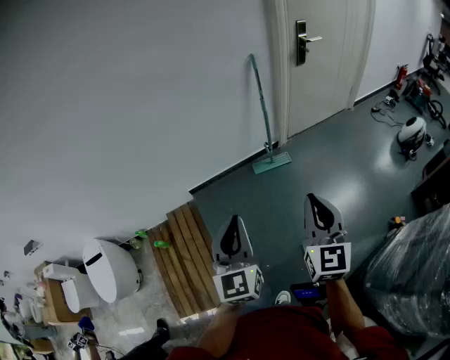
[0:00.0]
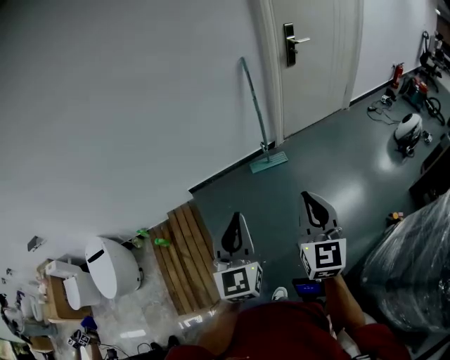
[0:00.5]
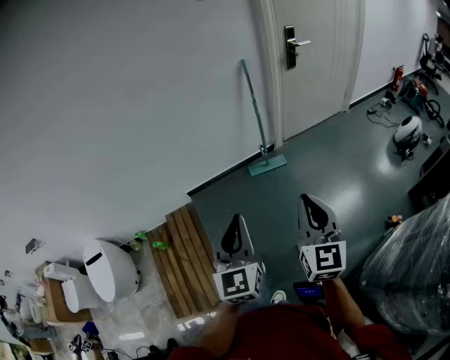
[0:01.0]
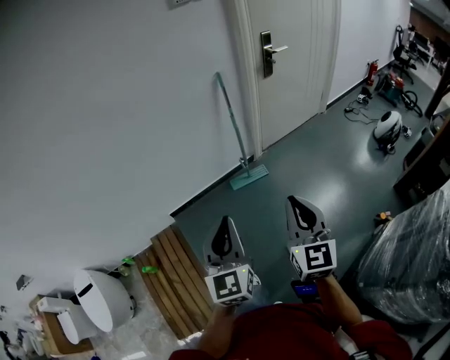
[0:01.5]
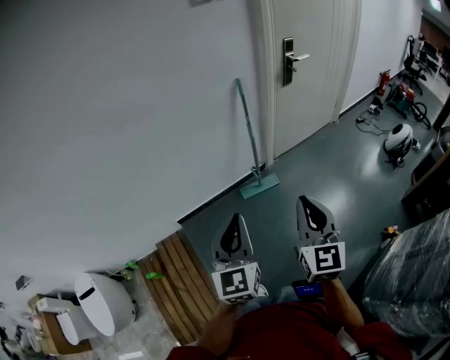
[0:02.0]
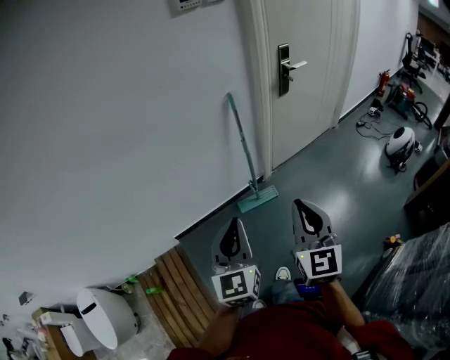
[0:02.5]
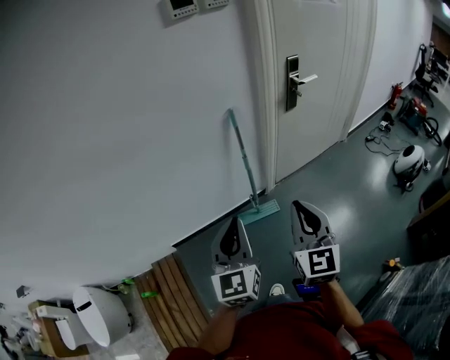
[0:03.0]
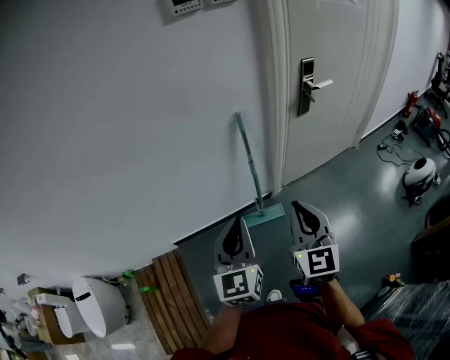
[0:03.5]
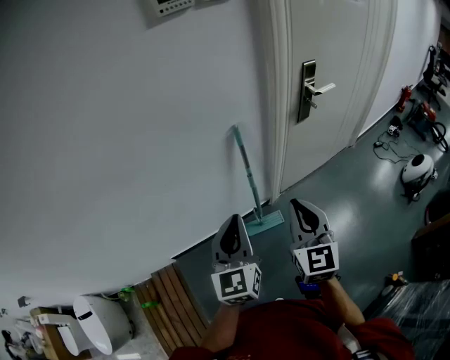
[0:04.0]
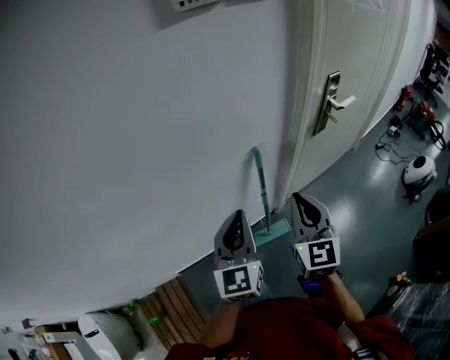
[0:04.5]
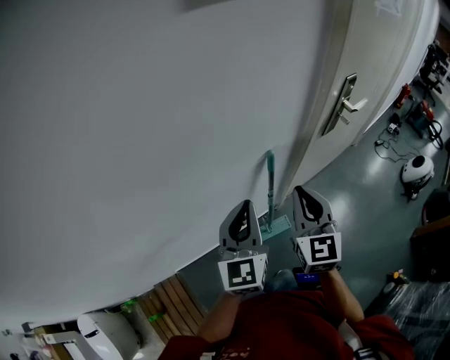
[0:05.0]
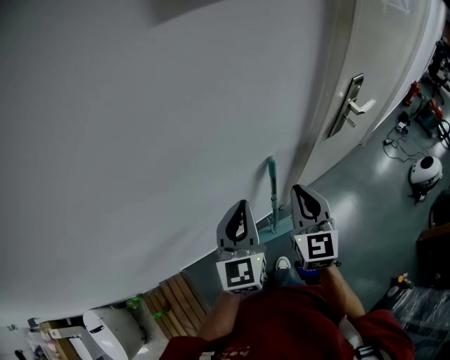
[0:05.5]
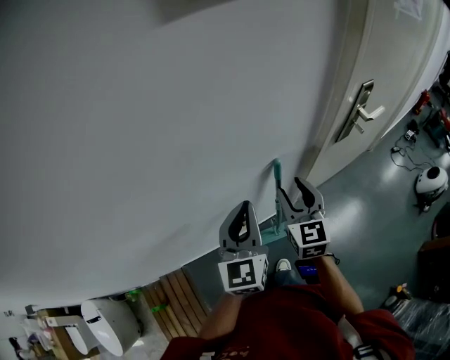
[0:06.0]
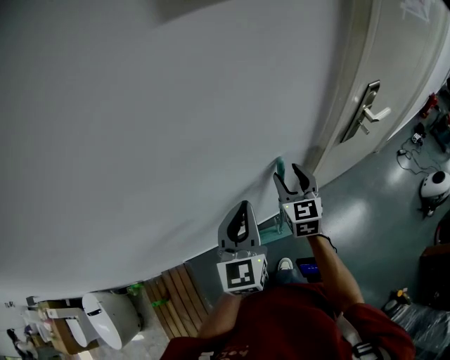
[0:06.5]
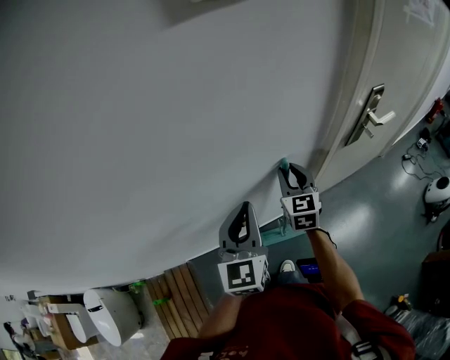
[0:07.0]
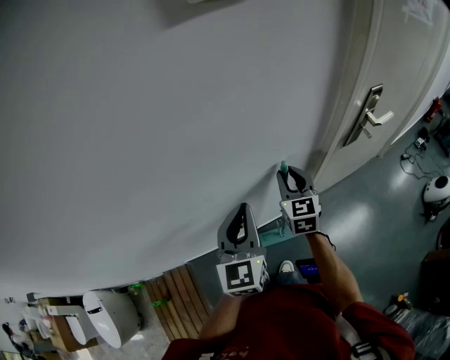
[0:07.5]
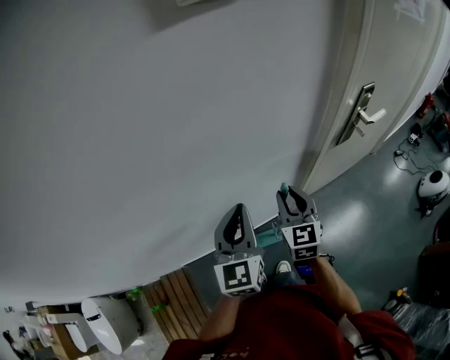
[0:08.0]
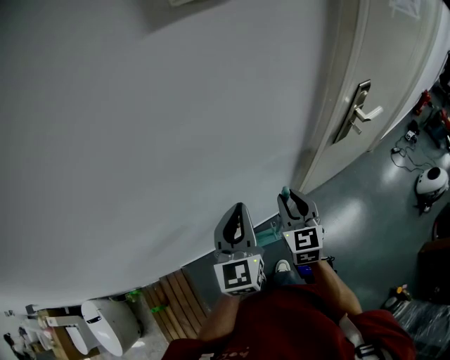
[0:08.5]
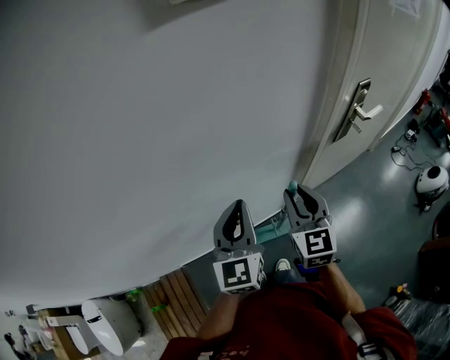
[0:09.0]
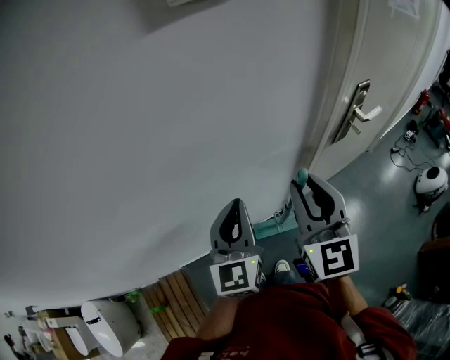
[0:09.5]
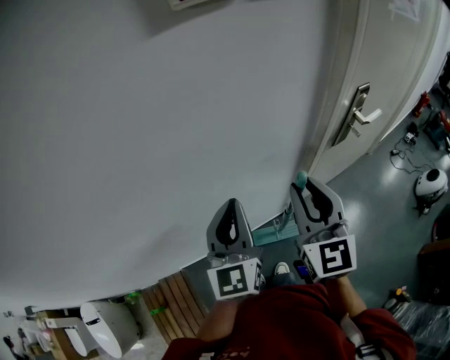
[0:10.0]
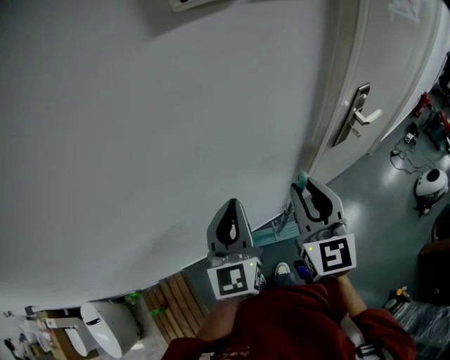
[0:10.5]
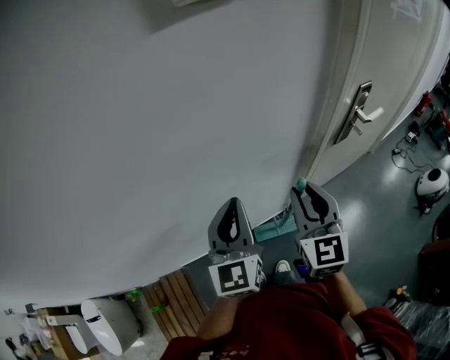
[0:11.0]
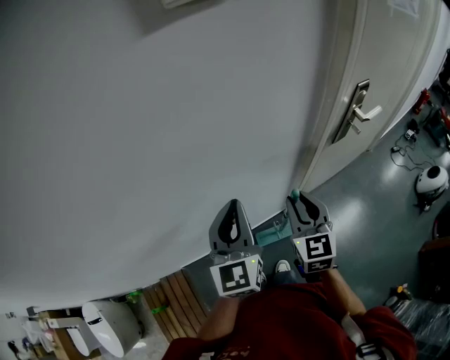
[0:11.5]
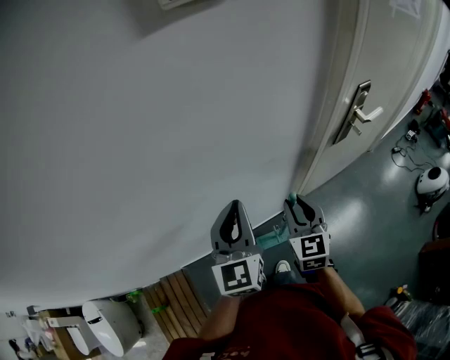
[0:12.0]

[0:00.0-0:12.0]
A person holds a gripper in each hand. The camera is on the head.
0:00.0 to 0:02.0: The grippers both shift forward by roughly 15 cm.
0:02.0 to 0:04.0: The pair of grippers is taken forward, about 40 cm.
0:04.0 to 0:06.0: The grippers both shift forward by roughly 25 cm. The right gripper opens.
0:08.0 to 0:10.0: The left gripper is displaced upward by approximately 5 cm; the right gripper moves upward, roughly 15 cm.
0:10.0 to 0:12.0: The right gripper goes some 15 cm downward.

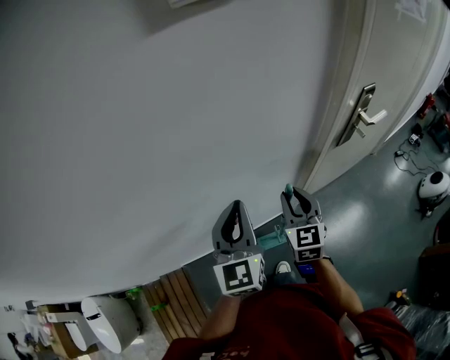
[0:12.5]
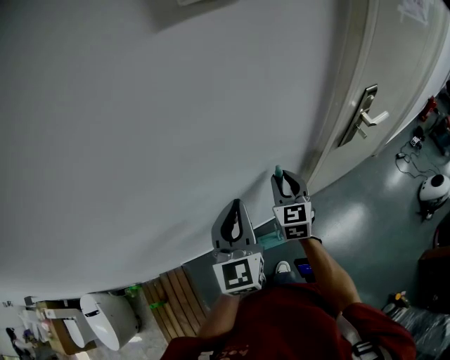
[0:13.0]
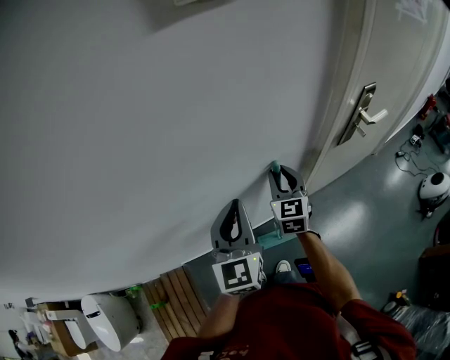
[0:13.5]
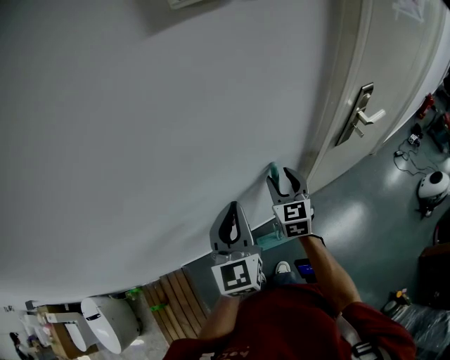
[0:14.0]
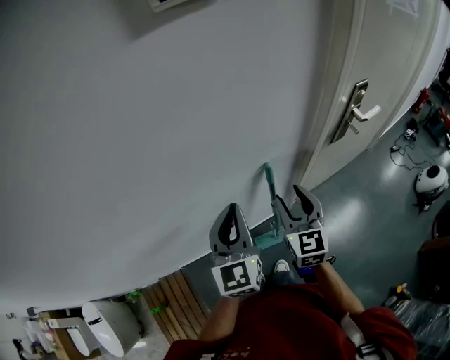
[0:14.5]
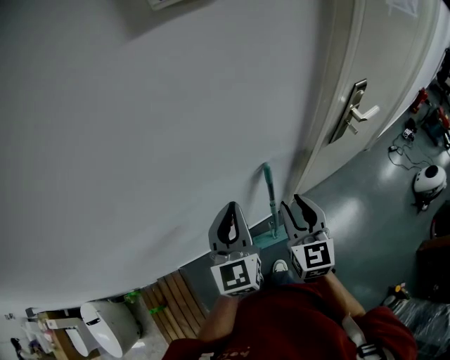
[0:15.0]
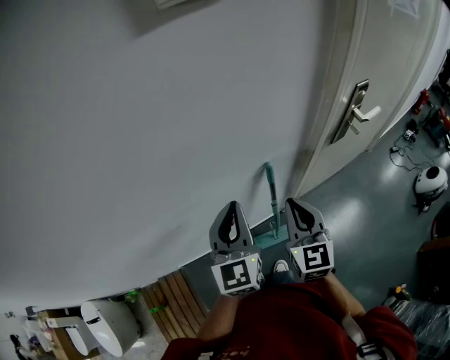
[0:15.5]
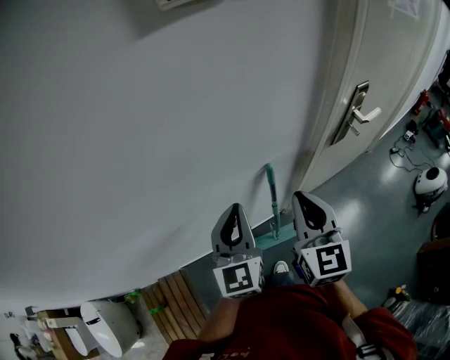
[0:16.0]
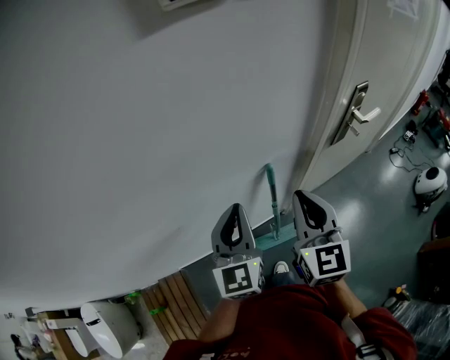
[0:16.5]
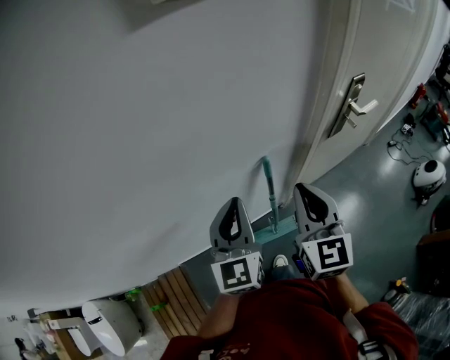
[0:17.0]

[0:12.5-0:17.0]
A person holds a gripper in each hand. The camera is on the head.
0:12.5 to 0:14.5: The right gripper goes forward and returns, approximately 5 cm each way, and opens.
0:14.5 to 0:17.0: The right gripper heads upward, covering about 10 cm, and closes up.

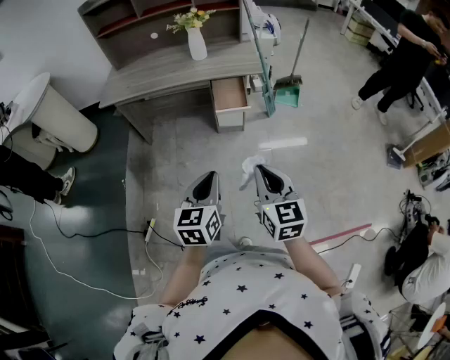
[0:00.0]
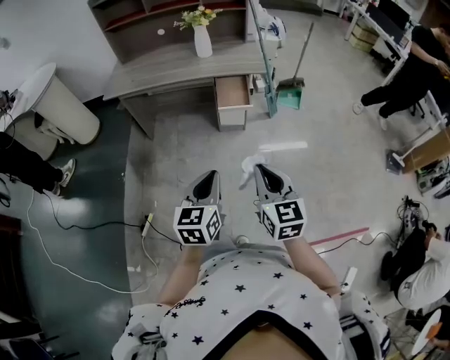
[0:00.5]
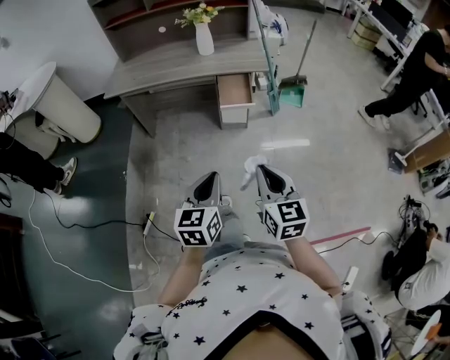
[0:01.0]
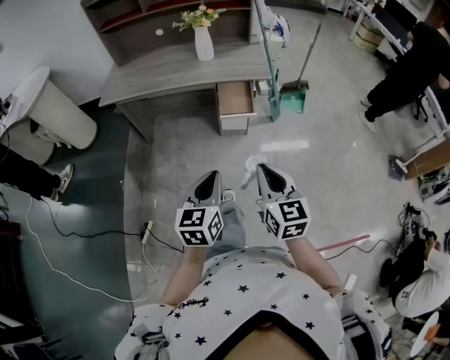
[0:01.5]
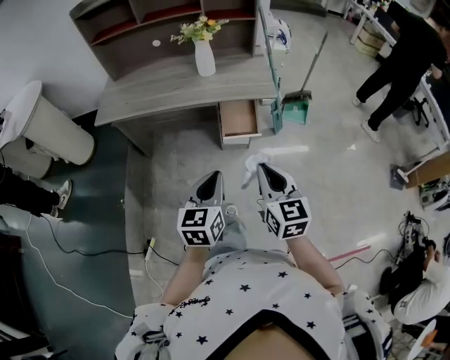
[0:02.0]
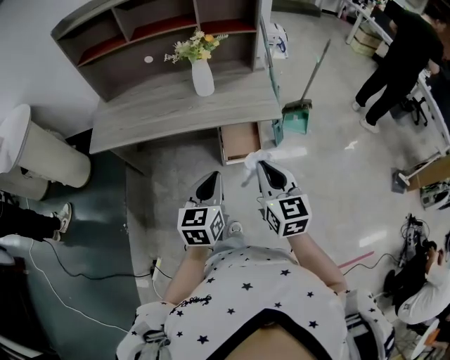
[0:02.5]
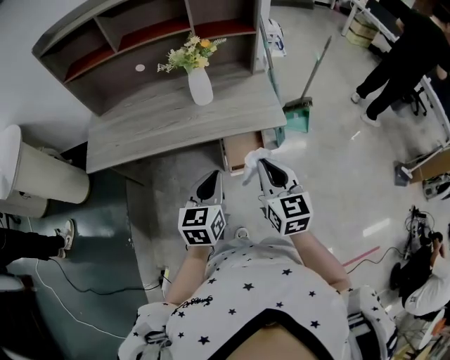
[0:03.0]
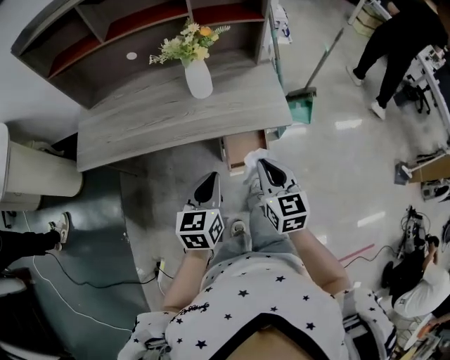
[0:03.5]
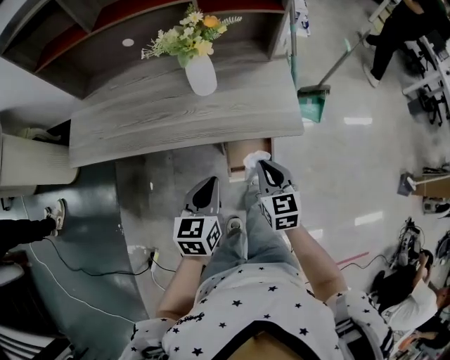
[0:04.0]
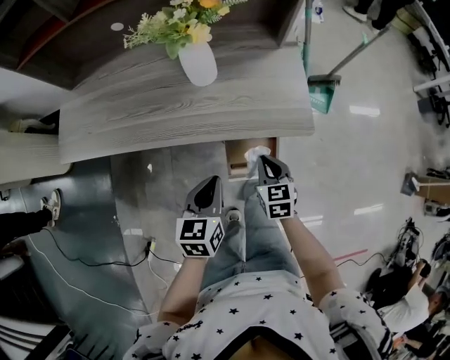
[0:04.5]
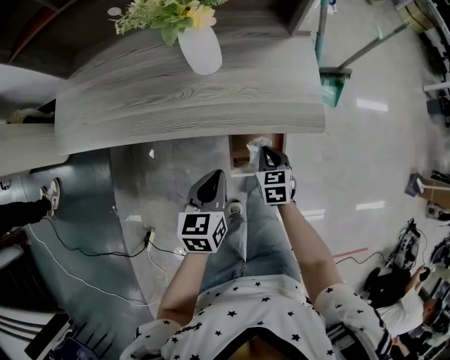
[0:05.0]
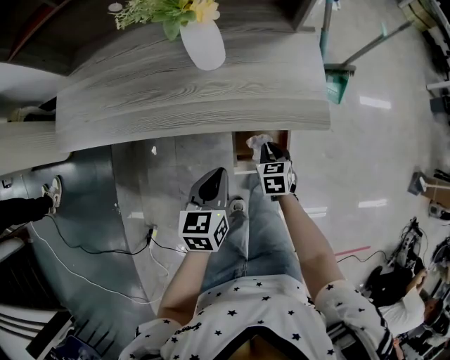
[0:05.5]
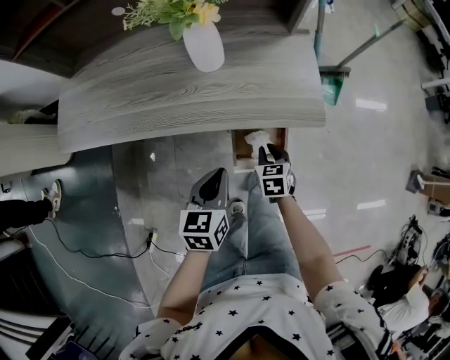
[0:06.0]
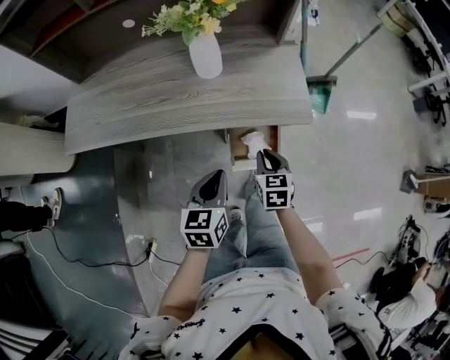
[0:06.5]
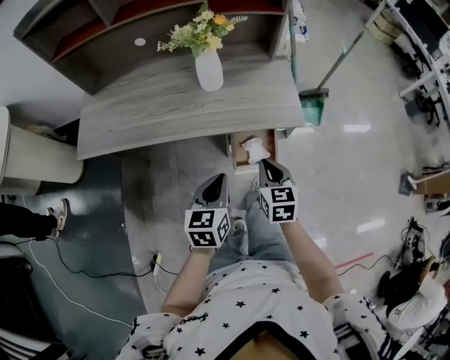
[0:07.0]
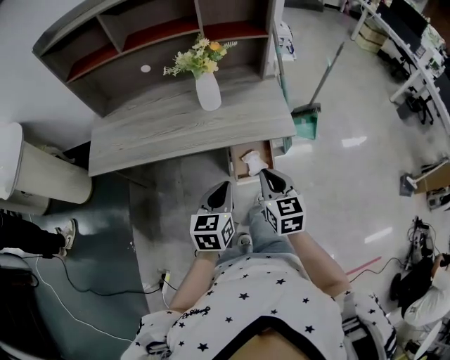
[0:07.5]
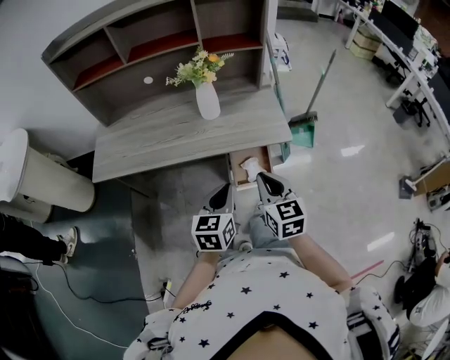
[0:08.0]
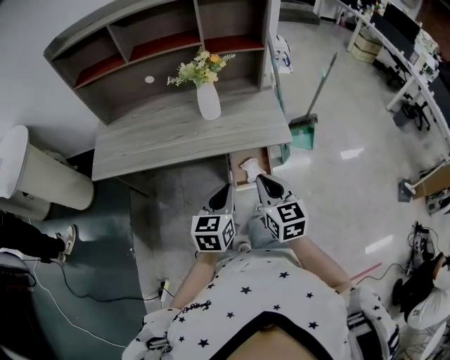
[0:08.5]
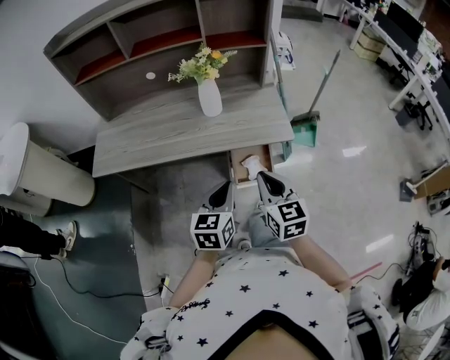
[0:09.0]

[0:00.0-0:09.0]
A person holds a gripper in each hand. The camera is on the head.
0:00.0 to 0:02.0: The two grippers go approximately 20 cm forward.
0:02.0 to 0:04.5: Both grippers move forward and downward, some 40 cm. The right gripper rotates roughly 30 degrees.
0:04.5 to 0:07.0: The right gripper heads upward and backward, covering some 15 cm, while the left gripper goes some 10 cm backward and upward.
0:07.0 to 0:09.0: The right gripper goes some 15 cm upward and backward. Meanwhile the left gripper goes about 5 cm upward.

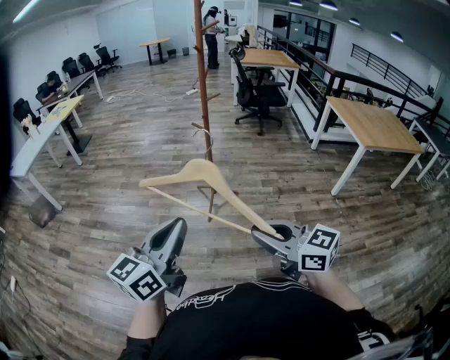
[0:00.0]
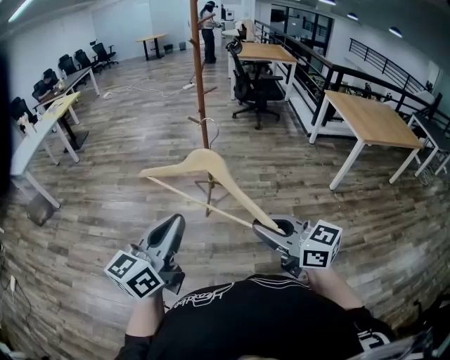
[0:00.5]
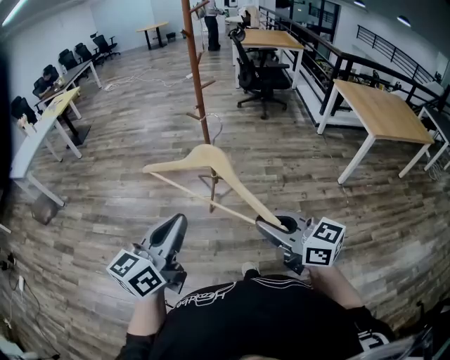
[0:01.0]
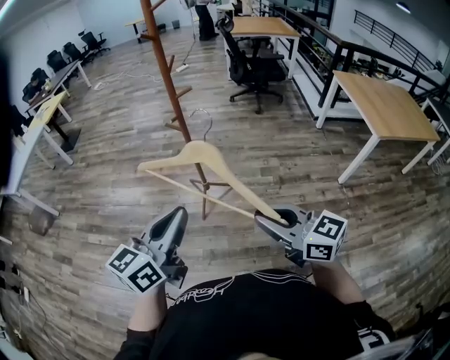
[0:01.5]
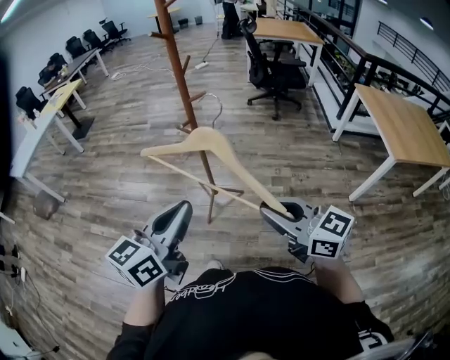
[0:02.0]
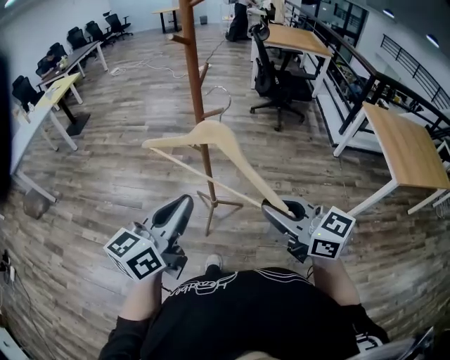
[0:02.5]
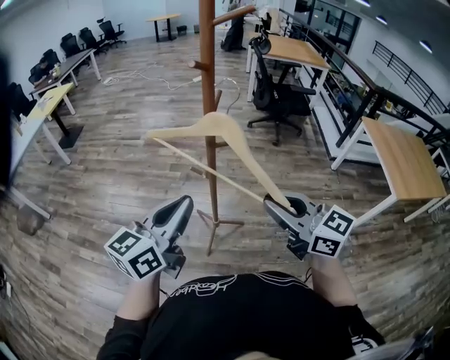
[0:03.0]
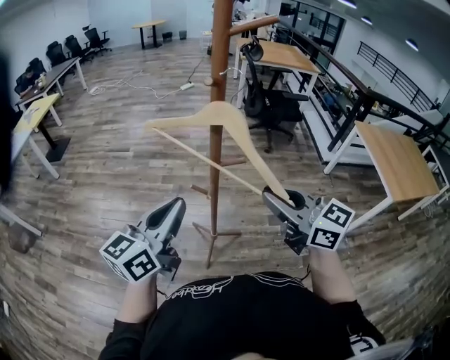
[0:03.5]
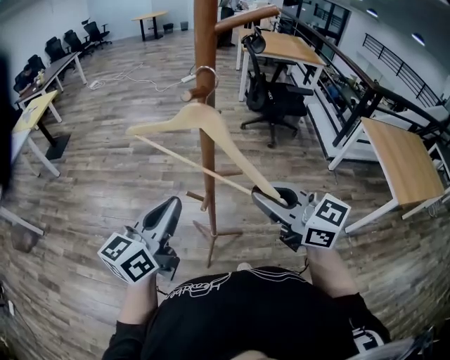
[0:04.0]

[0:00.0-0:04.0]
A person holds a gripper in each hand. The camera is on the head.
0:00.0 to 0:02.0: Both grippers move forward and to the right, about 30 cm.
0:02.0 to 0:04.0: Both grippers move forward, about 35 cm.
